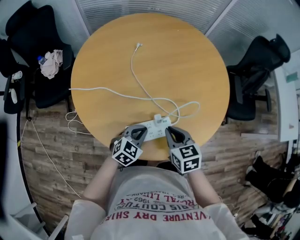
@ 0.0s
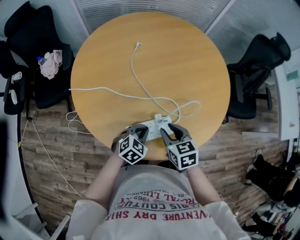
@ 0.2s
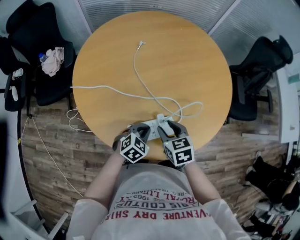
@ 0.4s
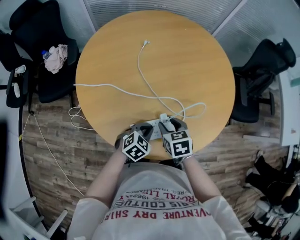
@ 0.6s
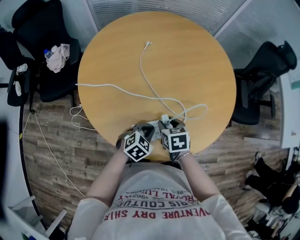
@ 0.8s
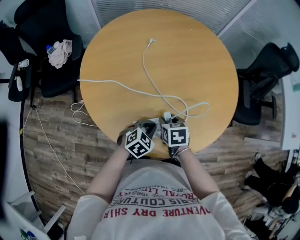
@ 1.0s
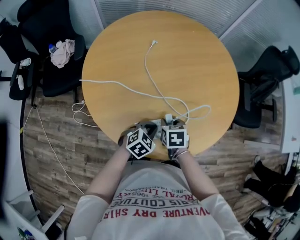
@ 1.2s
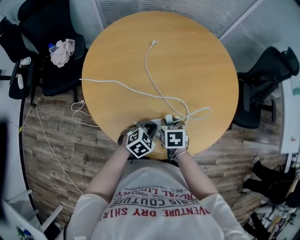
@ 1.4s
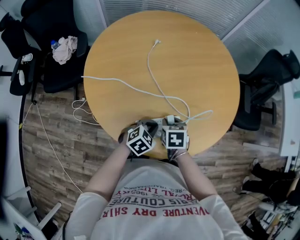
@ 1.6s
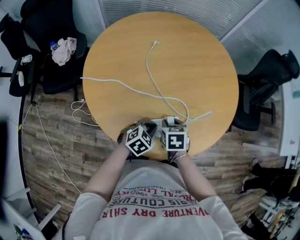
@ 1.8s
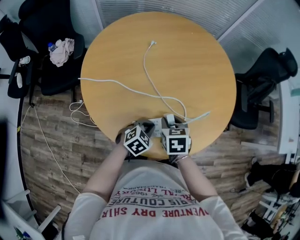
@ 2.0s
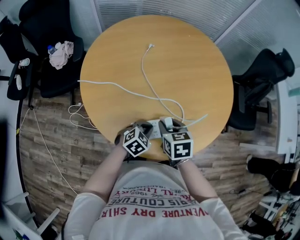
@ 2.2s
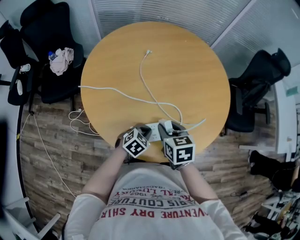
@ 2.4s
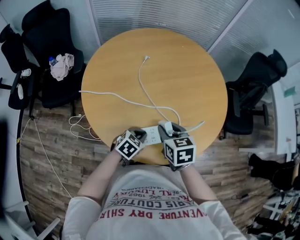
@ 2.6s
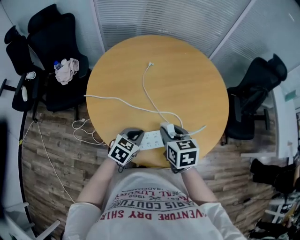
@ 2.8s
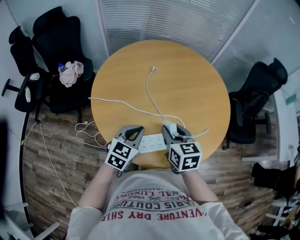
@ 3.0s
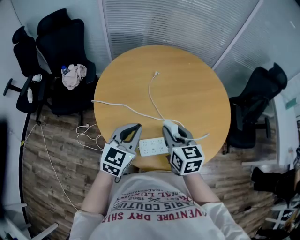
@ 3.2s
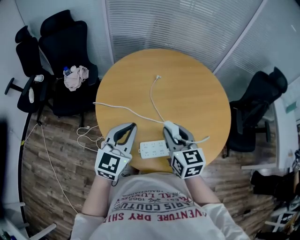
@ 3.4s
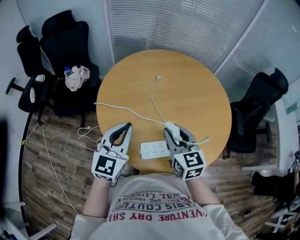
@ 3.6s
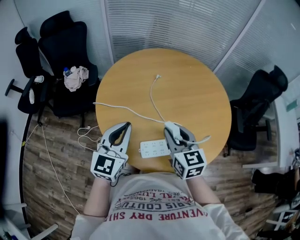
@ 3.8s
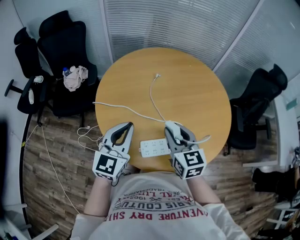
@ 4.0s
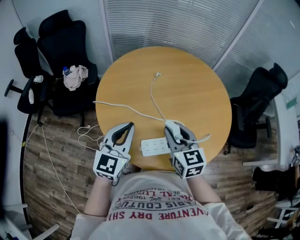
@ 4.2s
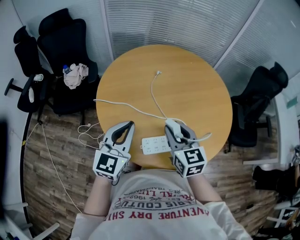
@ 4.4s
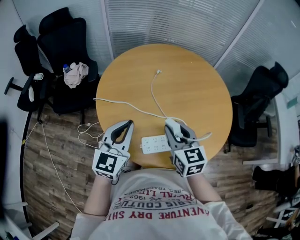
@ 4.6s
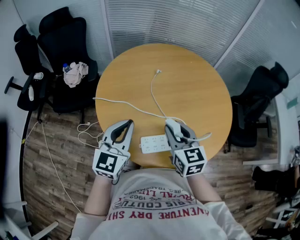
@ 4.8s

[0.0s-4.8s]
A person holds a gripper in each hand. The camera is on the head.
0.0s to 1.6s: The right gripper moves downward, approximately 10 cm, turns by about 20 degrees, and opens up.
1.6s to 3.2s: The left gripper goes about 25 cm upward and to the left, and angles its fingers upward, by approximately 30 degrees; the right gripper is displaced upward by roughly 20 cm, and tilts its fingers approximately 40 degrees upward.
3.2s to 4.8s: The left gripper ends up about 5 cm from where it was.

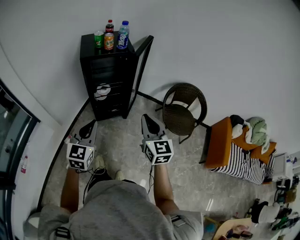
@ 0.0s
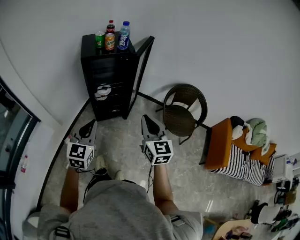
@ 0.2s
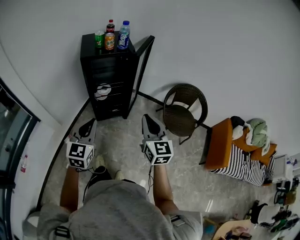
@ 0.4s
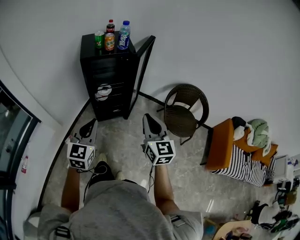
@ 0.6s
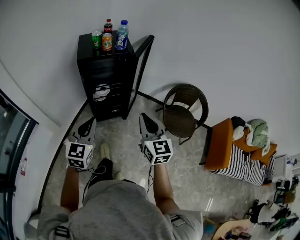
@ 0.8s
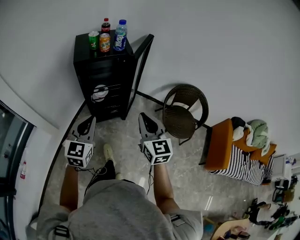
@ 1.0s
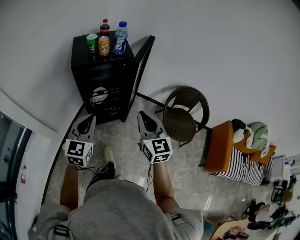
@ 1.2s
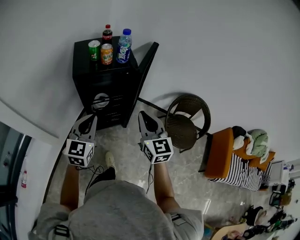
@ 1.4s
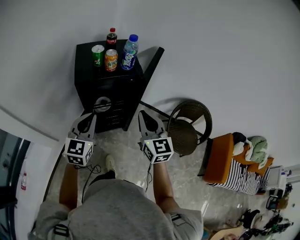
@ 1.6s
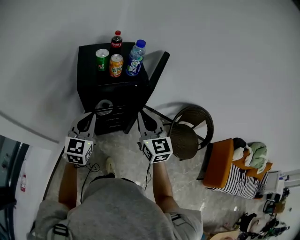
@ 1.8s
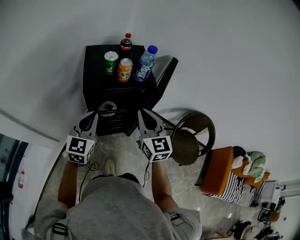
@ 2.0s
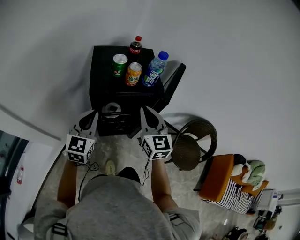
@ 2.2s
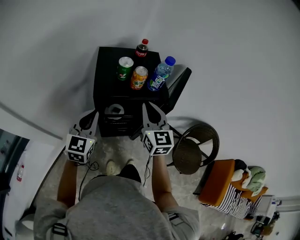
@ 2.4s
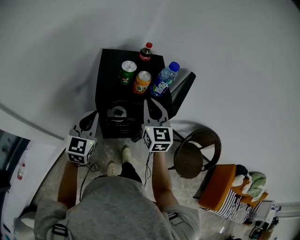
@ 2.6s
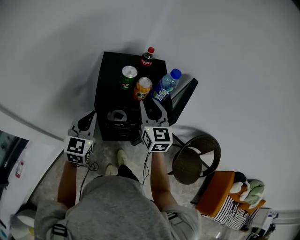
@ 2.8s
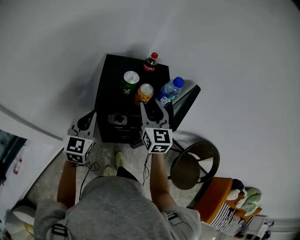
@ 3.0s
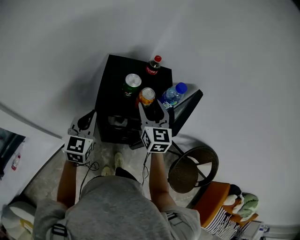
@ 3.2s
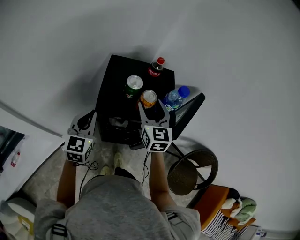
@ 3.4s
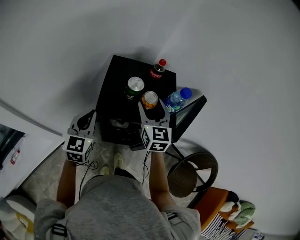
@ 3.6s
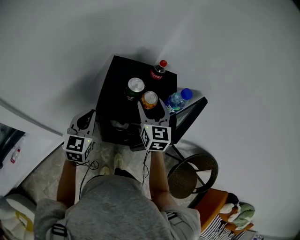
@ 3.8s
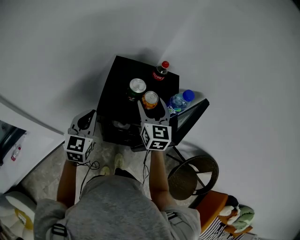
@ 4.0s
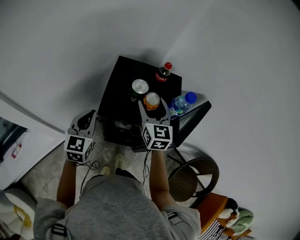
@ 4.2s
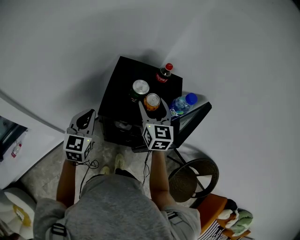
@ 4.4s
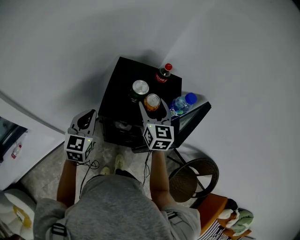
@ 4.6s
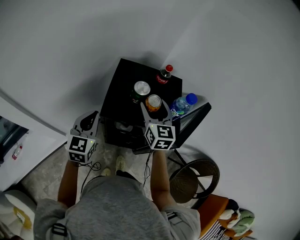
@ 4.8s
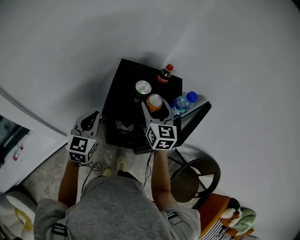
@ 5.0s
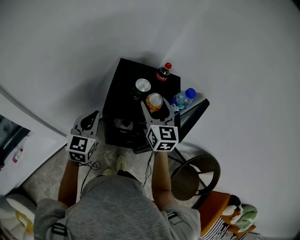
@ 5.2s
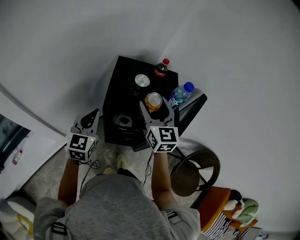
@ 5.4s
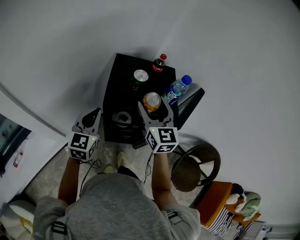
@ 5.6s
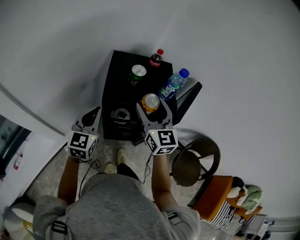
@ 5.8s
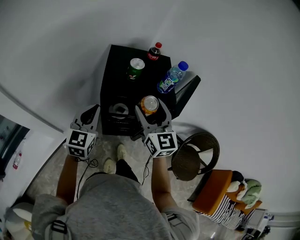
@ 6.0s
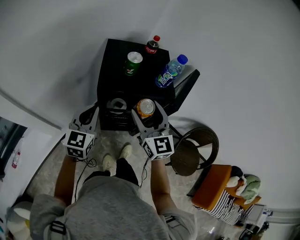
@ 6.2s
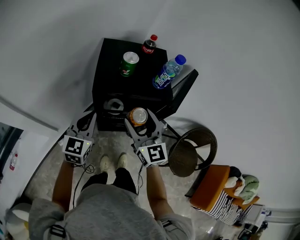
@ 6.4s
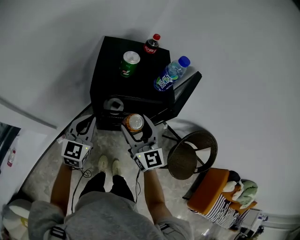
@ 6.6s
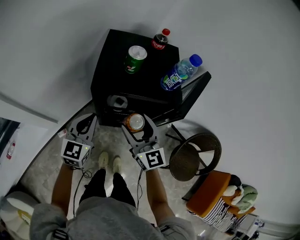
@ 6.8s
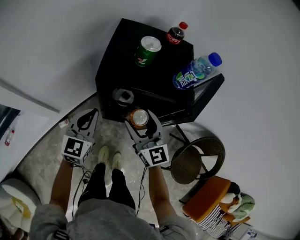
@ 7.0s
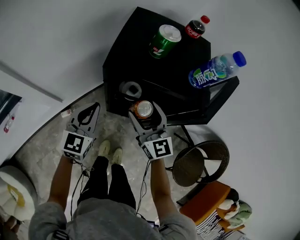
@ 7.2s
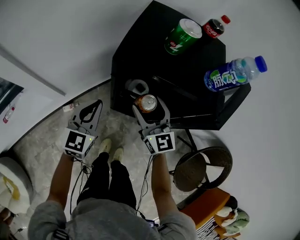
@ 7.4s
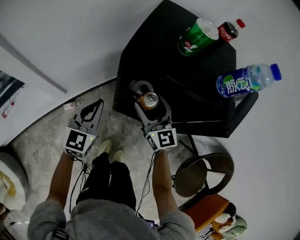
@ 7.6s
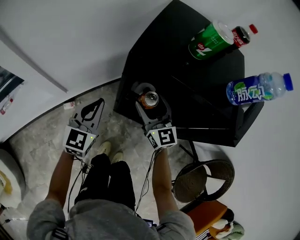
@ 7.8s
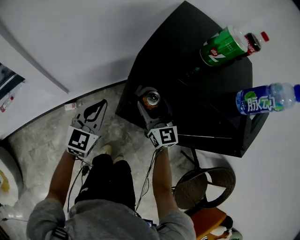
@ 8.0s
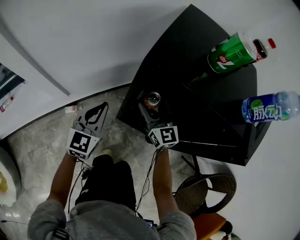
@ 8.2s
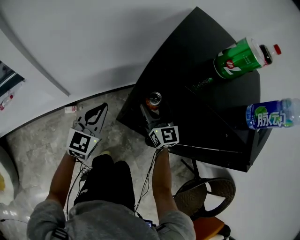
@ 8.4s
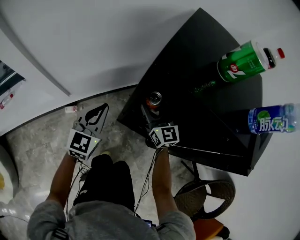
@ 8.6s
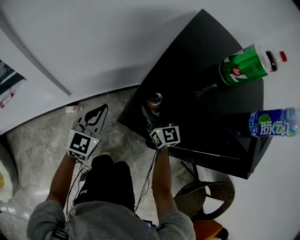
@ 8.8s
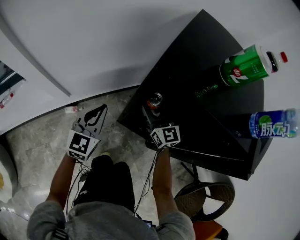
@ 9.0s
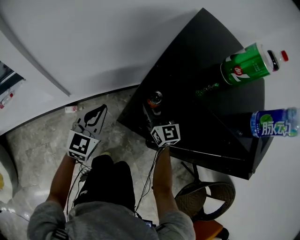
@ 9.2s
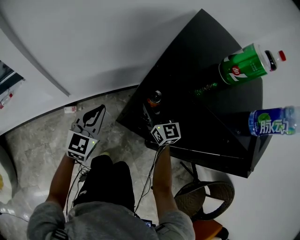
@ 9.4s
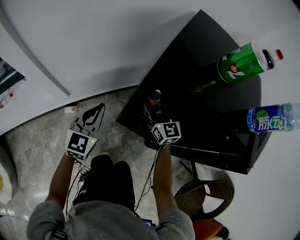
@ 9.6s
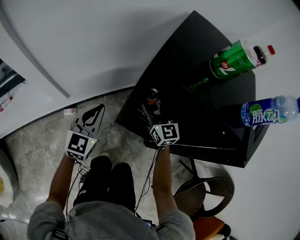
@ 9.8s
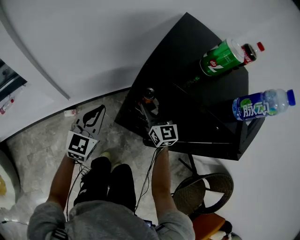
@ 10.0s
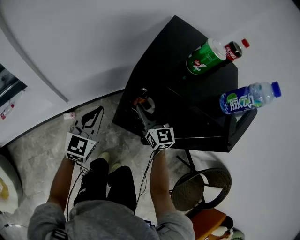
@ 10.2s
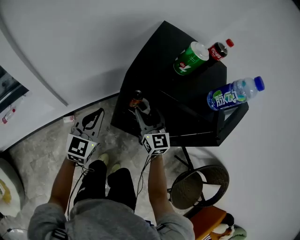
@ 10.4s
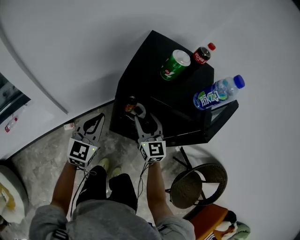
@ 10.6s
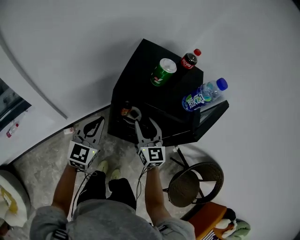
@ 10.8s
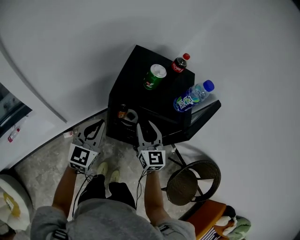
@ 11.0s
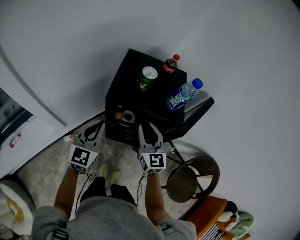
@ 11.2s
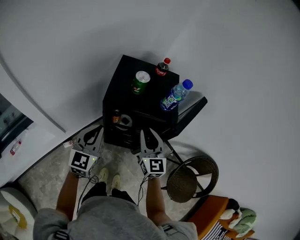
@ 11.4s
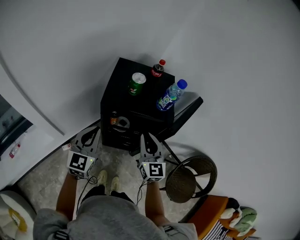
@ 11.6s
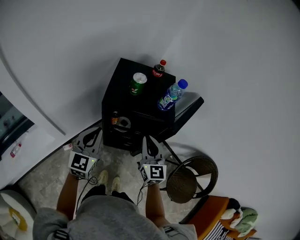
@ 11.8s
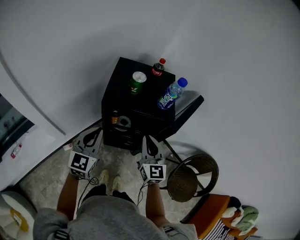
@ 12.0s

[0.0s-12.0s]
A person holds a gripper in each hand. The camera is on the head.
0.0s to 1.6s: The grippers both shift forward by some 25 cm.
1.6s to 3.0s: The left gripper moves forward and to the left, roughly 20 cm, while the right gripper is displaced forward by roughly 25 cm, and opens up.
3.0s to 4.4s: The right gripper heads forward, covering roughly 5 cm, and opens up.
4.4s to 6.0s: The right gripper goes approximately 15 cm backward. The left gripper travels backward by roughly 10 cm.
6.0s to 7.6s: The two grippers go about 25 cm downward. The right gripper changes its angle by about 20 degrees.
7.6s to 9.0s: The grippers both shift downward and forward by some 15 cm.
9.0s to 10.4s: The right gripper moves upward and backward, approximately 15 cm. Meanwhile the left gripper shifts some 10 cm upward.
10.4s to 12.0s: The right gripper shifts about 30 cm upward, backward and to the right, rotates some 20 degrees, and closes up, while the left gripper goes roughly 20 cm upward.

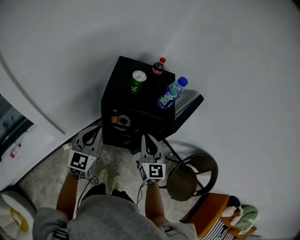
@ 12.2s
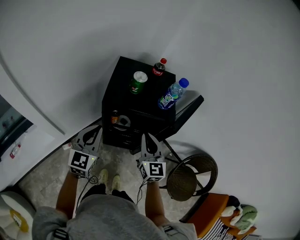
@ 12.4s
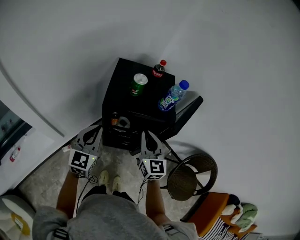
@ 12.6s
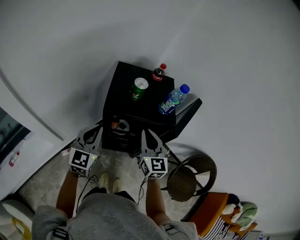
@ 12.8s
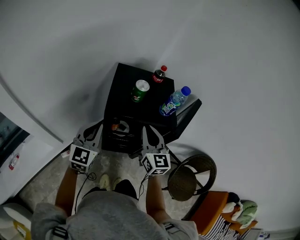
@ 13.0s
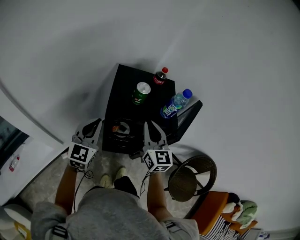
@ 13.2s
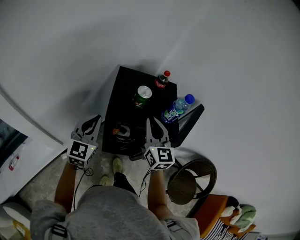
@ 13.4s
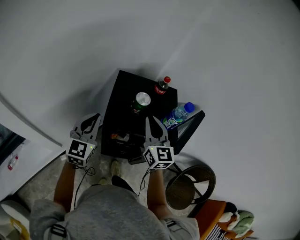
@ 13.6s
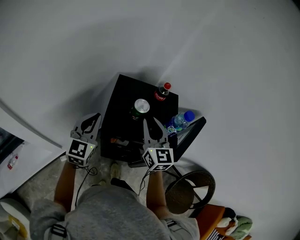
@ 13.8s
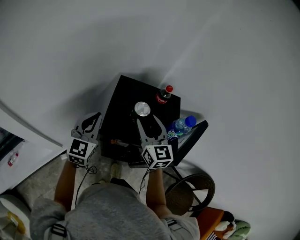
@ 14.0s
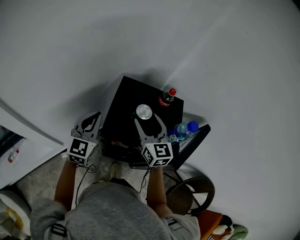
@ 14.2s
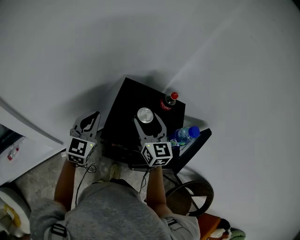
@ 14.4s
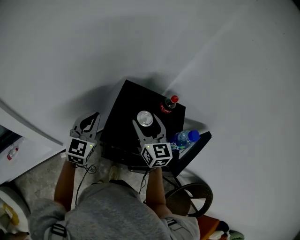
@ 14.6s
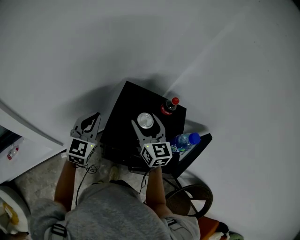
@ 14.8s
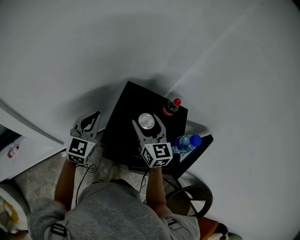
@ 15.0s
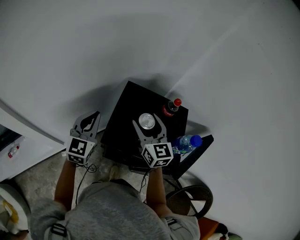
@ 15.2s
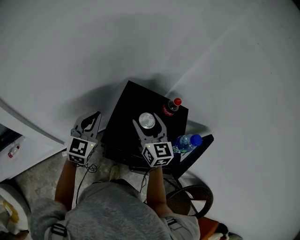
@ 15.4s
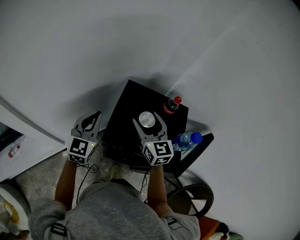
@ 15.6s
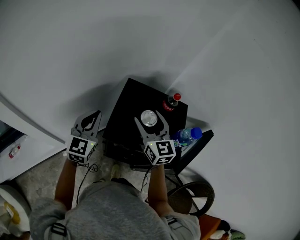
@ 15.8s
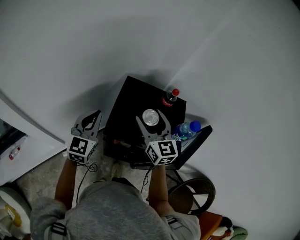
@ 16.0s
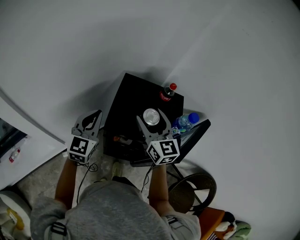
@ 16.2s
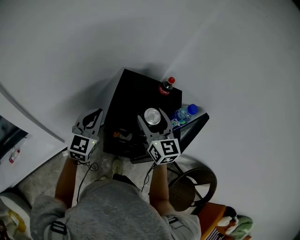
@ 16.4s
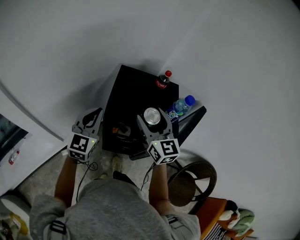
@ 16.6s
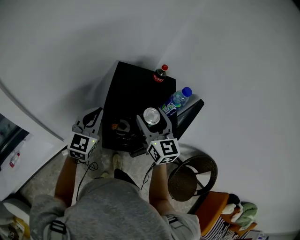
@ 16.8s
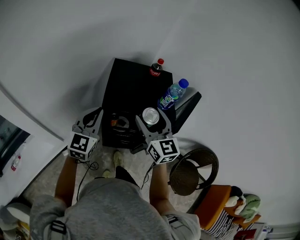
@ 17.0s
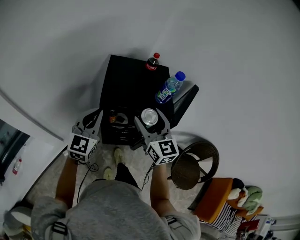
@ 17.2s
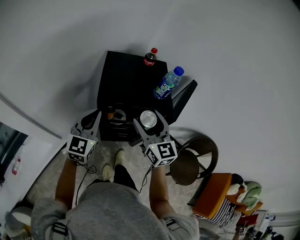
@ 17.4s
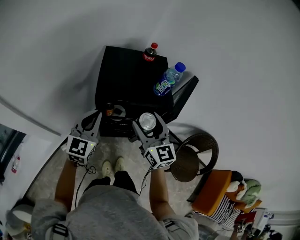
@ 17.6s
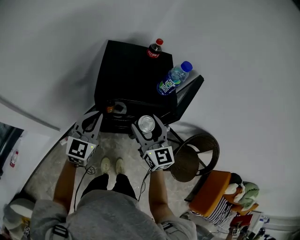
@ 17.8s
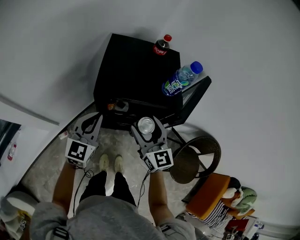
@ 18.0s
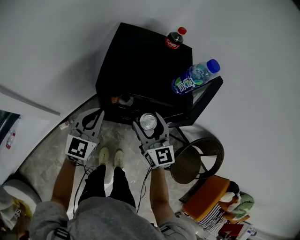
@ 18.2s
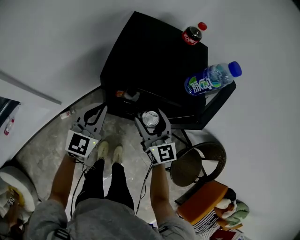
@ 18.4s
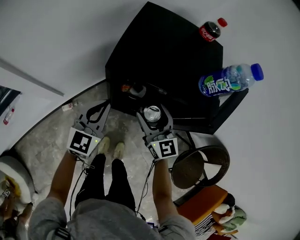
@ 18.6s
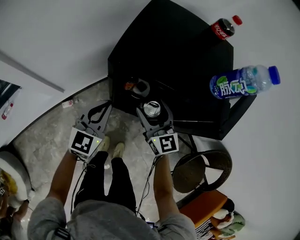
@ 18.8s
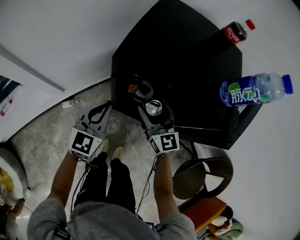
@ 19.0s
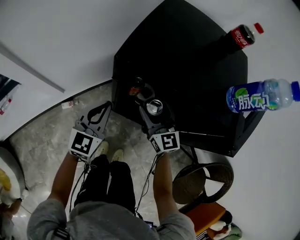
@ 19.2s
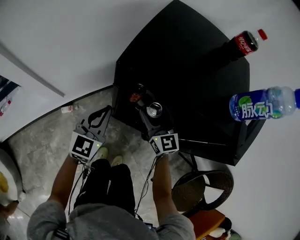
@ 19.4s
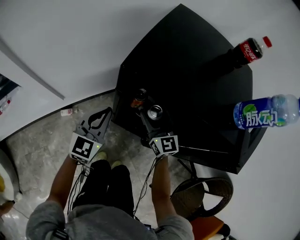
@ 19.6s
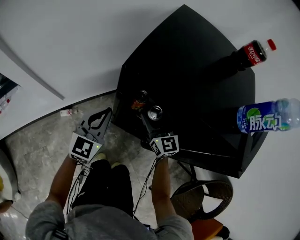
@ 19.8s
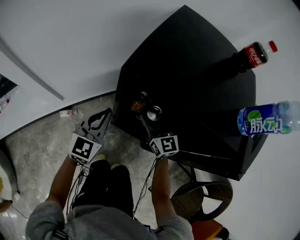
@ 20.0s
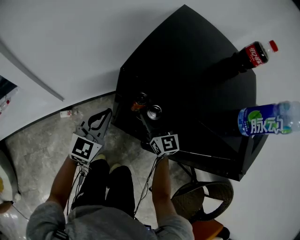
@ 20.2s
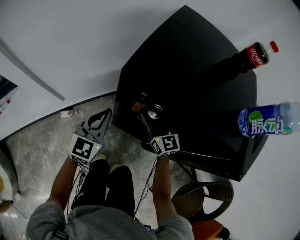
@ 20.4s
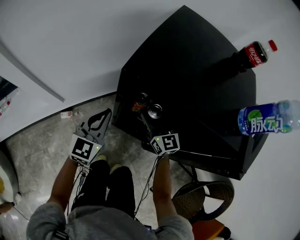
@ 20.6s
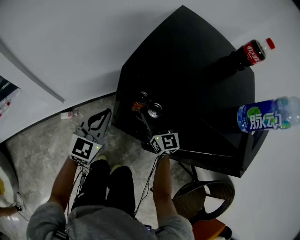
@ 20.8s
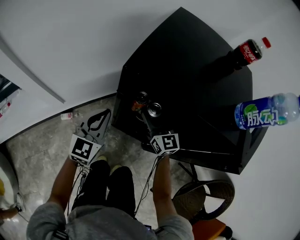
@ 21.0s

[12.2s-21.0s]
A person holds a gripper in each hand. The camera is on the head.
12.2s to 13.6s: The left gripper shifts roughly 15 cm forward. The right gripper heads forward and upward, covering roughly 20 cm.
13.6s to 15.2s: Both grippers move forward, about 10 cm. The right gripper opens its fingers.
15.2s to 16.6s: The two grippers go roughly 10 cm backward.
16.6s to 18.0s: The right gripper goes approximately 15 cm downward and backward. The left gripper shifts about 10 cm downward, backward and to the right.
18.0s to 19.6s: The left gripper moves downward, about 25 cm. The right gripper travels downward and forward by about 30 cm.
19.6s to 21.0s: The grippers make only small movements.
